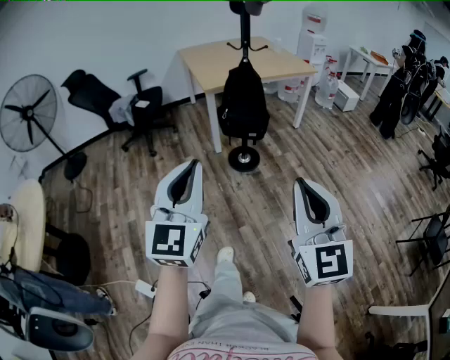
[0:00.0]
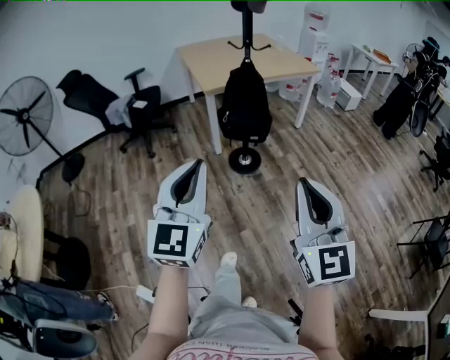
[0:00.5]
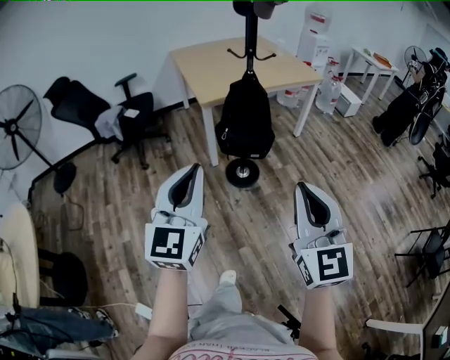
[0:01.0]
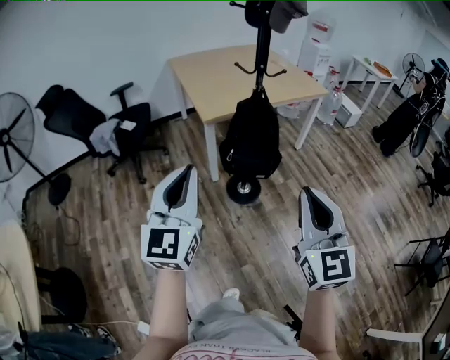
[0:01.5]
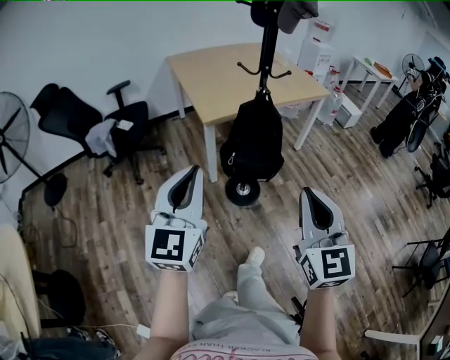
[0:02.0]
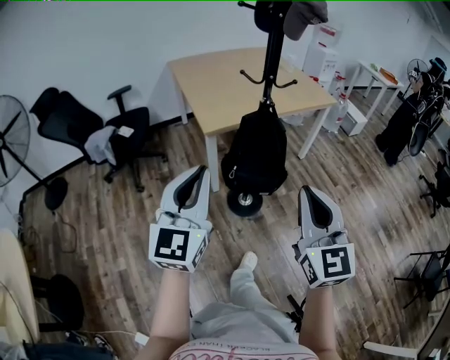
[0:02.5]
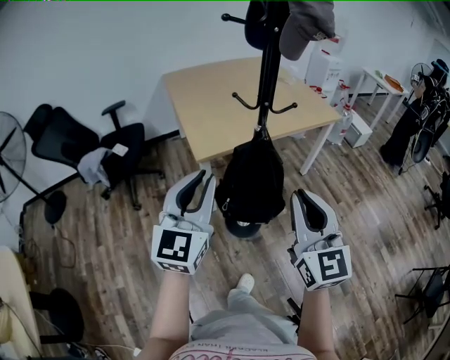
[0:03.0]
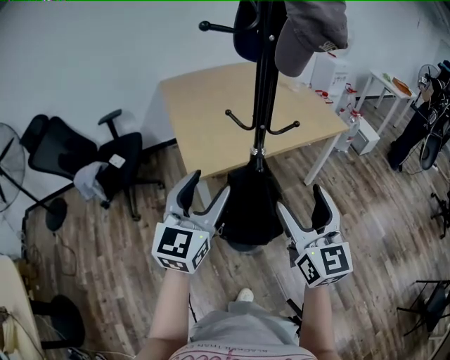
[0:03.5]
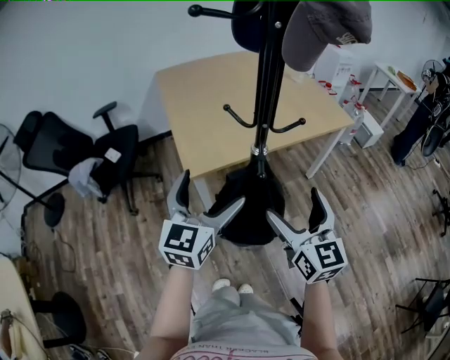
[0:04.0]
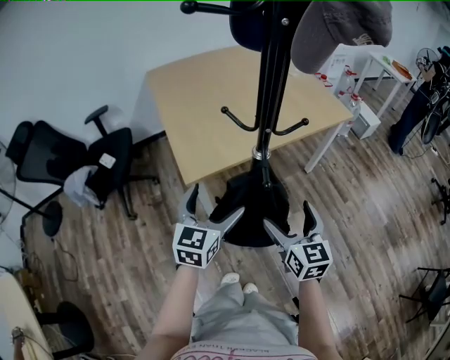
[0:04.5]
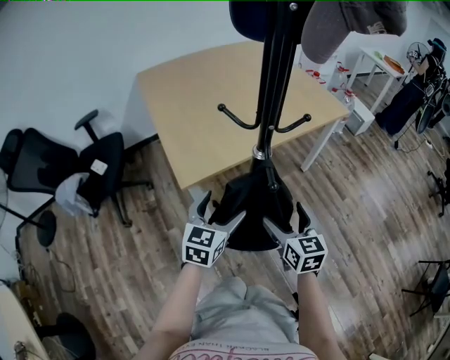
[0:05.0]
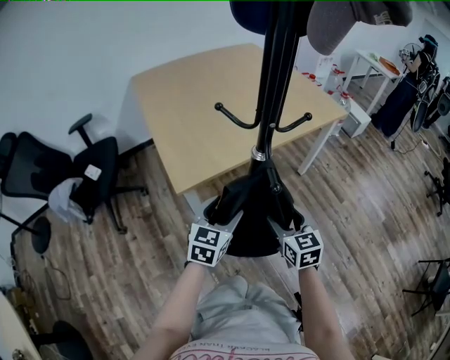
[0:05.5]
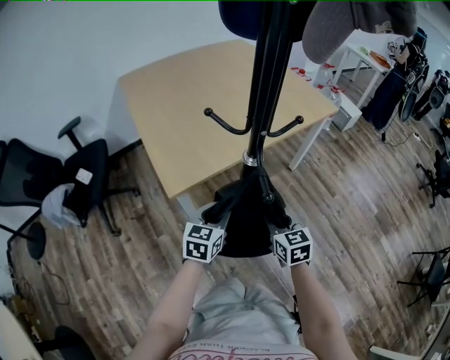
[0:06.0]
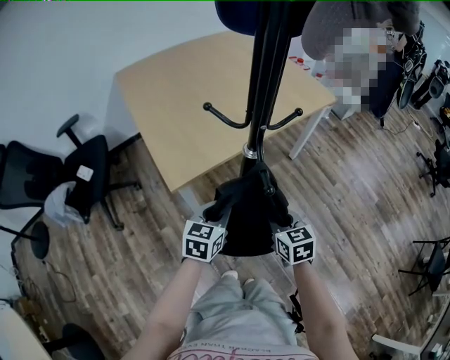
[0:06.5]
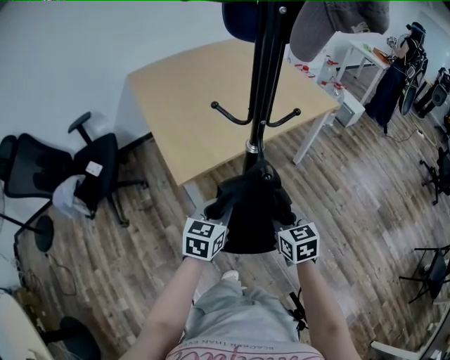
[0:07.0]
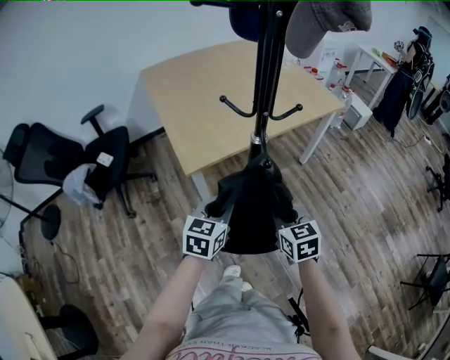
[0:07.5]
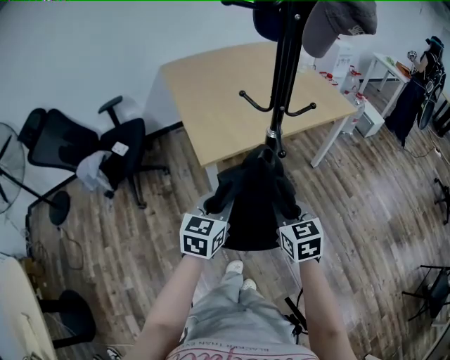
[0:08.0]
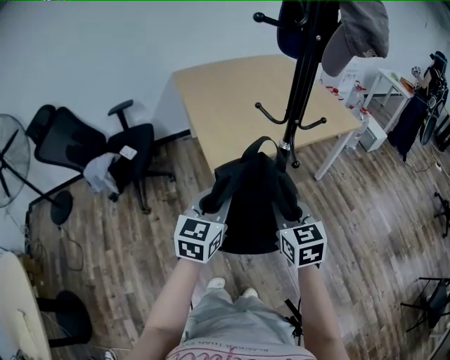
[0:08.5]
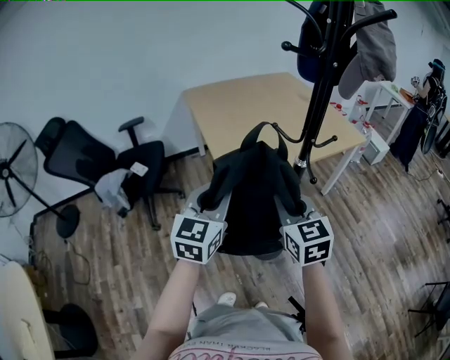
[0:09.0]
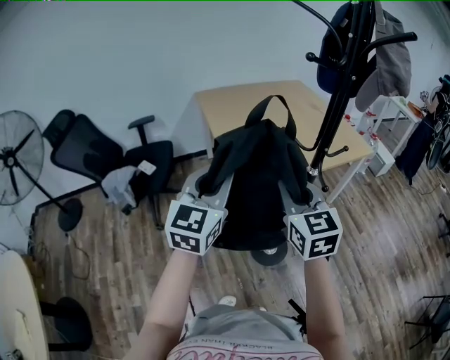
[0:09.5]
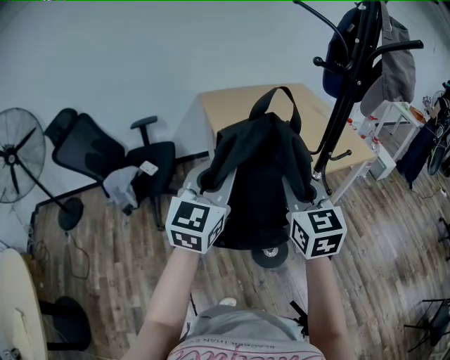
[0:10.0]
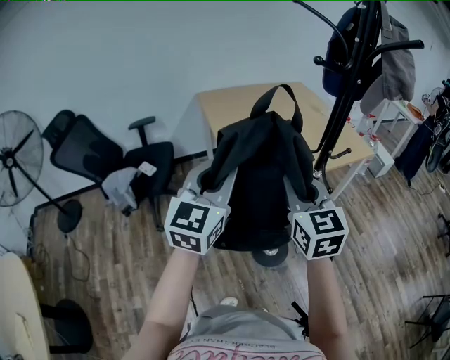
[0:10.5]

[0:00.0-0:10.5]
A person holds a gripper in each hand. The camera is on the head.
0:00.0 to 0:02.0: The two grippers go some 30 cm forward.
0:02.0 to 0:04.0: The grippers both shift forward by approximately 35 cm. The right gripper opens; the left gripper opens its fingers.
0:04.0 to 0:06.5: The grippers both shift downward by roughly 20 cm. The right gripper points its fingers some 30 degrees further downward, and closes; the left gripper turns by some 30 degrees, and closes.
0:06.5 to 0:08.5: The right gripper is displaced upward, to the left and backward by some 20 cm. Meanwhile the left gripper is displaced upward, backward and to the left by approximately 20 cm, and changes its angle by about 20 degrees.
0:08.5 to 0:10.5: The grippers both shift upward and to the left by roughly 20 cm.

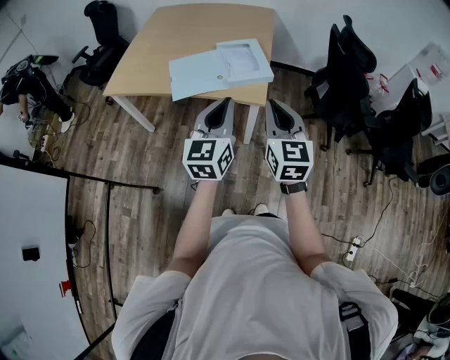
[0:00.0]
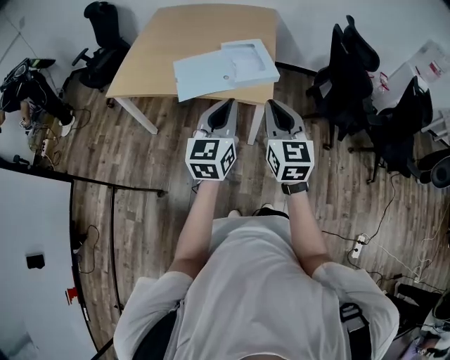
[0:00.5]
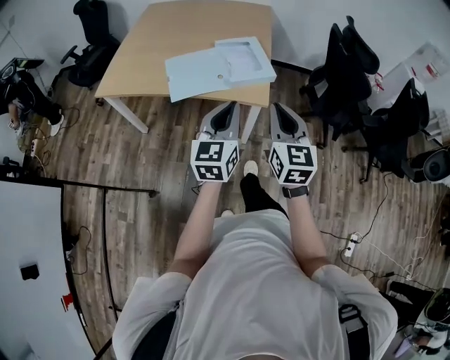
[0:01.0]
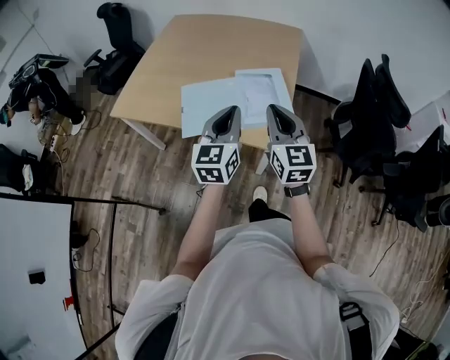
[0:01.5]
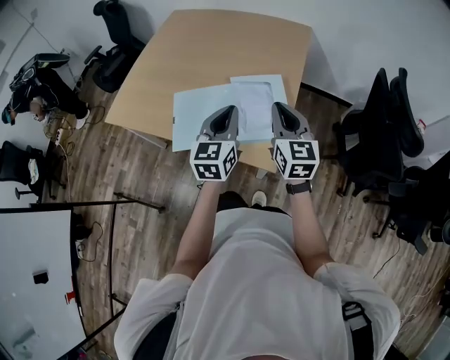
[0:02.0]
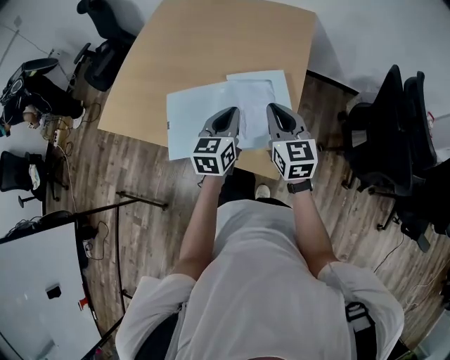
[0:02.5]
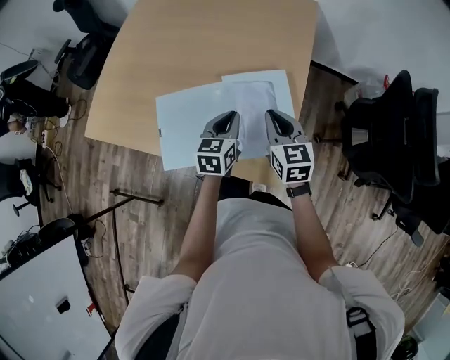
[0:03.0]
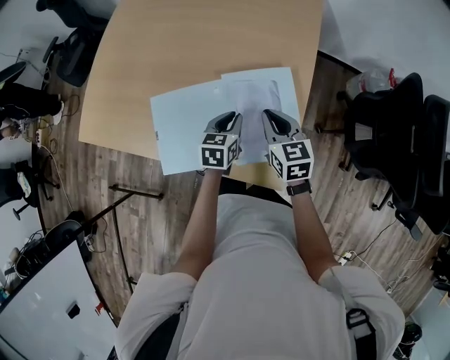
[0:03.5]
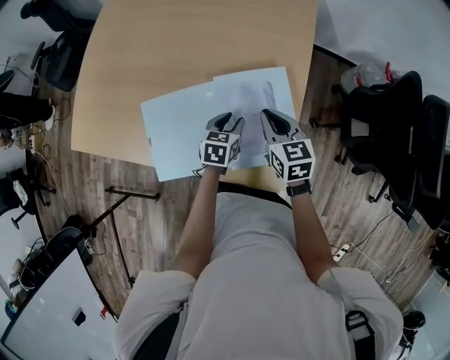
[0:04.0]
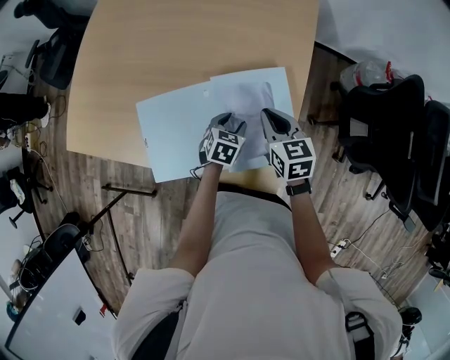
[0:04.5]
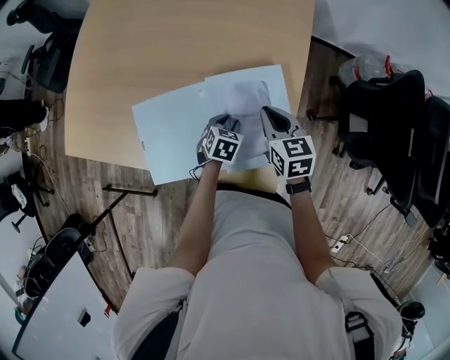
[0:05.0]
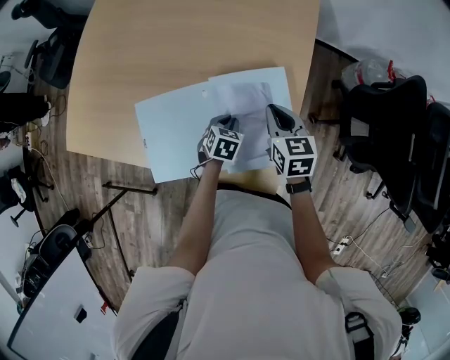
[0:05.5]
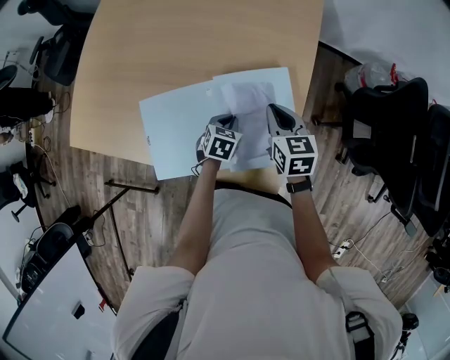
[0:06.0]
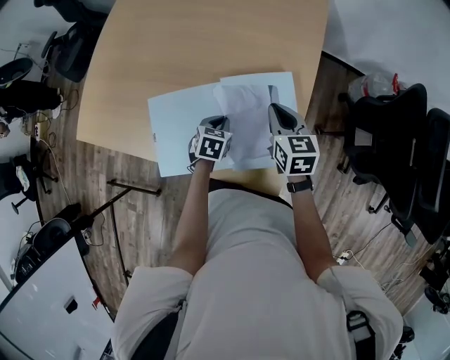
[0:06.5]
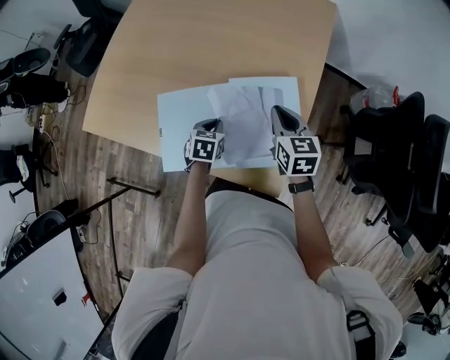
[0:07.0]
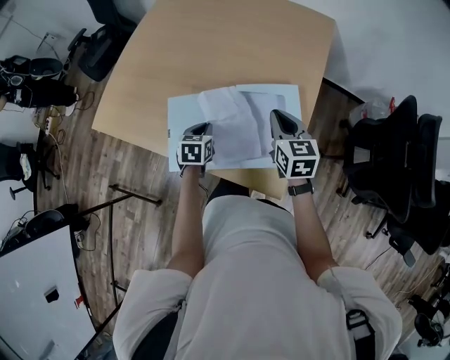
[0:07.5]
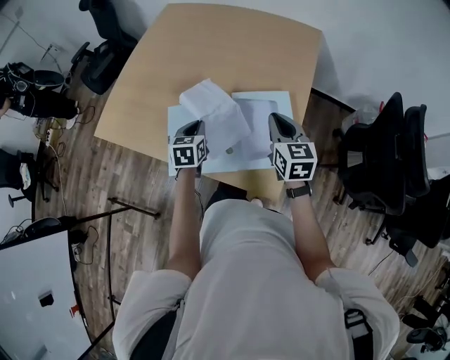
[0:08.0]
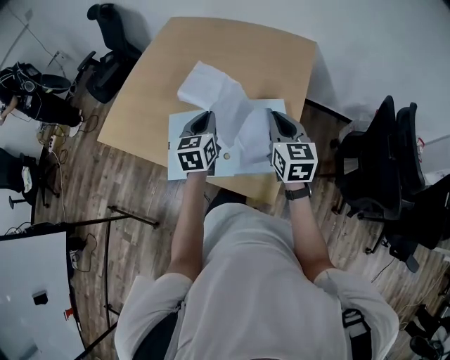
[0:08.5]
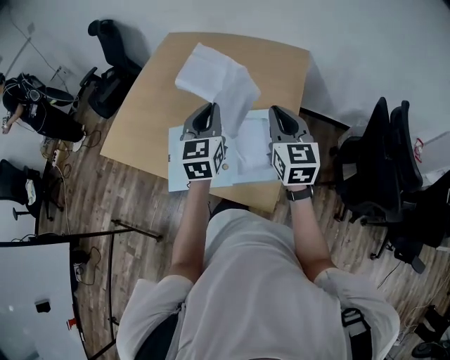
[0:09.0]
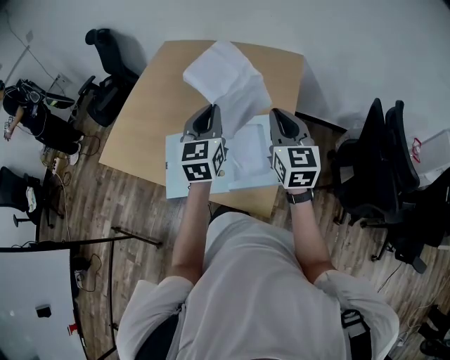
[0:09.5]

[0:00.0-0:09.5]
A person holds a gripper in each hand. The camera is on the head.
0:00.0 to 0:02.0: The two grippers go about 35 cm forward.
0:02.0 to 0:04.0: The two grippers go about 30 cm downward and forward. The left gripper points its fingers about 40 degrees further downward, and opens up. The right gripper swivels about 30 degrees.
0:04.0 to 0:05.5: The left gripper goes approximately 5 cm downward.
0:05.5 to 0:07.5: The right gripper travels upward by some 10 cm, while the left gripper moves to the left and upward, roughly 20 cm, and swivels about 20 degrees.
0:07.5 to 0:09.5: The right gripper is displaced upward by approximately 15 cm, and swivels some 20 degrees. The left gripper travels upward by some 30 cm, and tilts its fingers about 40 degrees upward.

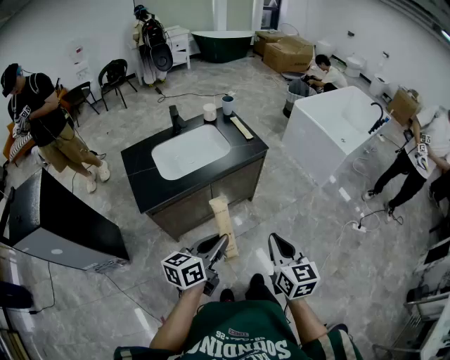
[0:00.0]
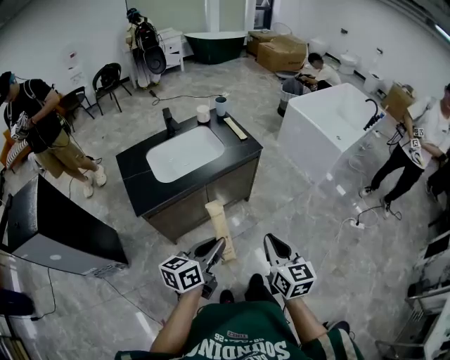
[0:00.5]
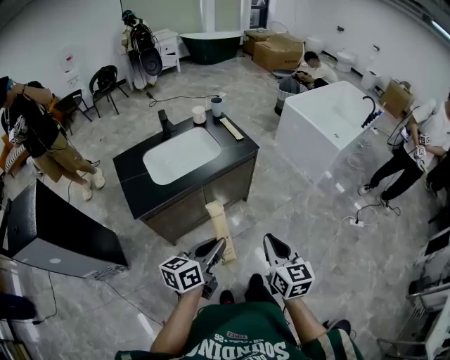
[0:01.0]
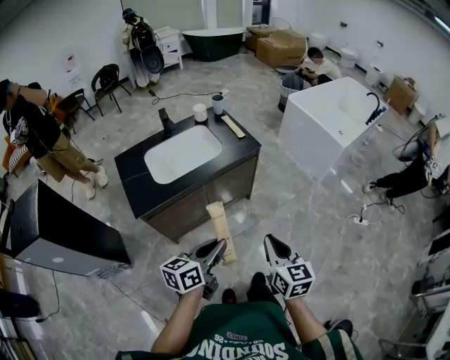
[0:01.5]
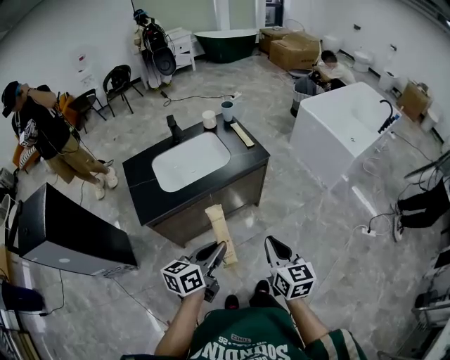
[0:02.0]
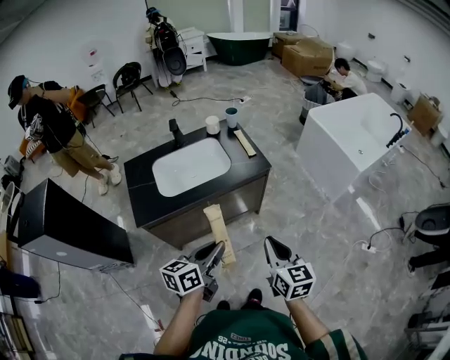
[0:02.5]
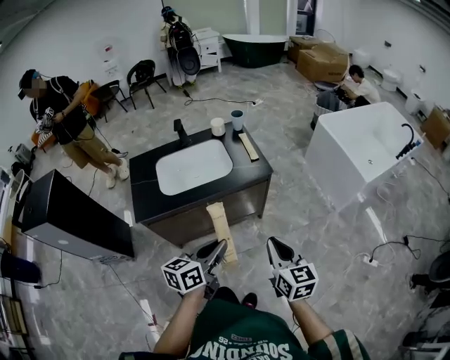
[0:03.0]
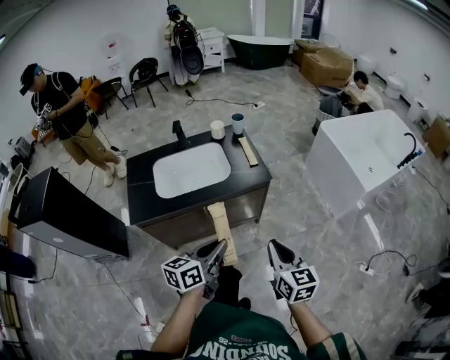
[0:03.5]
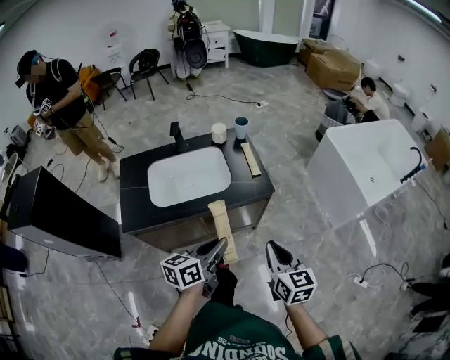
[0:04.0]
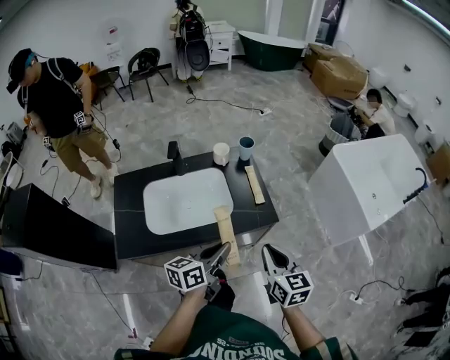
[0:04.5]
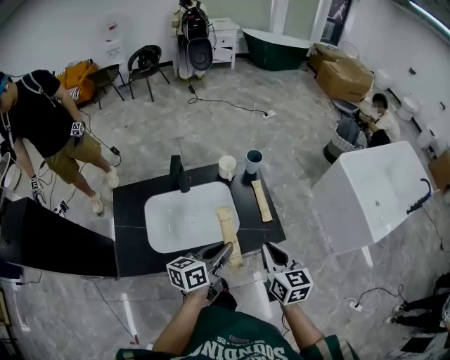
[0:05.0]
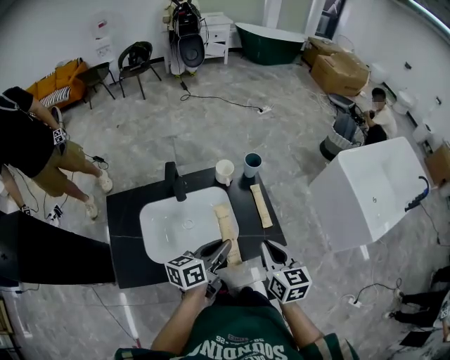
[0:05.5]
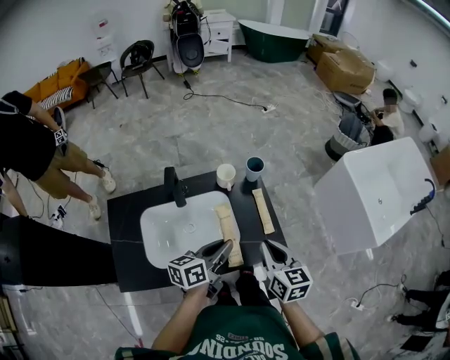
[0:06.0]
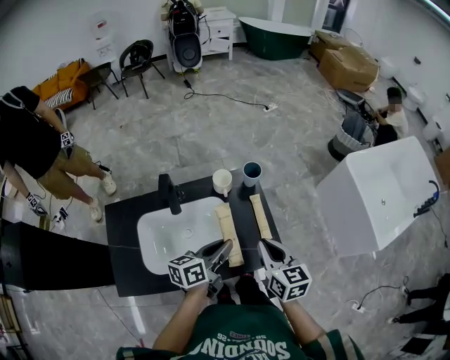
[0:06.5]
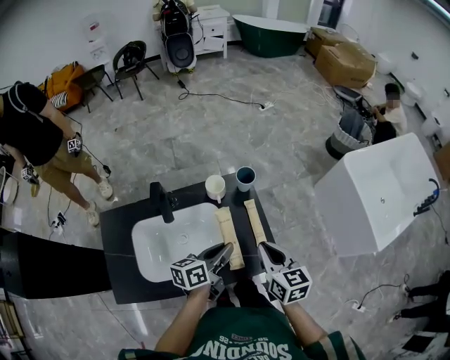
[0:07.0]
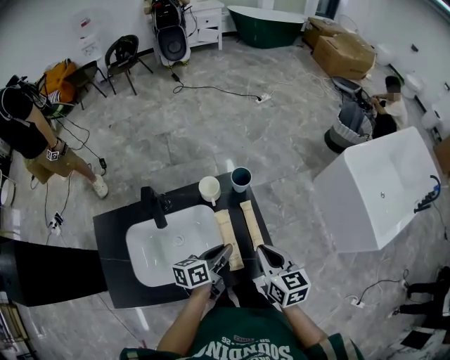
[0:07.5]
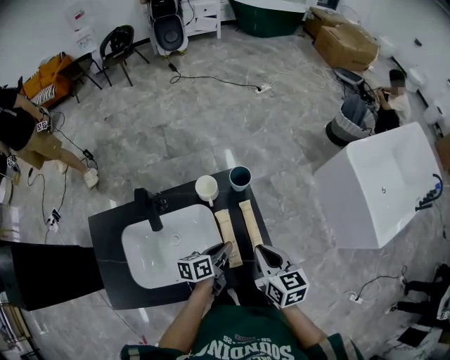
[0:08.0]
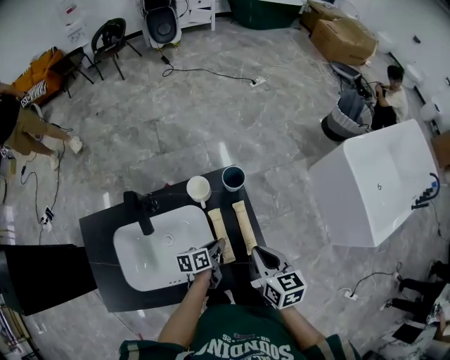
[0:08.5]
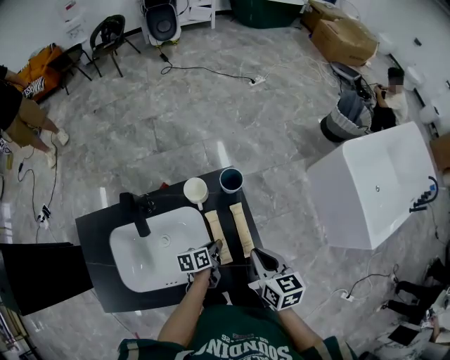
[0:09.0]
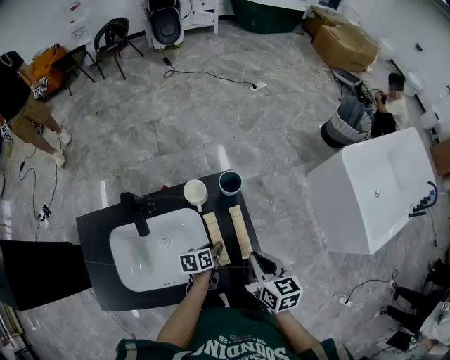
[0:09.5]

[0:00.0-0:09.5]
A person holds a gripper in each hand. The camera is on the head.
0:00.0 to 0:02.0: Both grippers travel together forward, about 5 cm.
0:02.0 to 0:04.0: Both grippers move forward, some 20 cm.
0:04.0 to 0:05.5: The grippers both shift forward by roughly 30 cm.
0:05.5 to 0:07.5: The right gripper goes roughly 15 cm forward; the left gripper is displaced forward, downward and to the right by some 20 cm.
0:07.5 to 0:09.5: The left gripper shifts roughly 15 cm downward, and turns by about 30 degrees. The right gripper goes approximately 5 cm downward.
